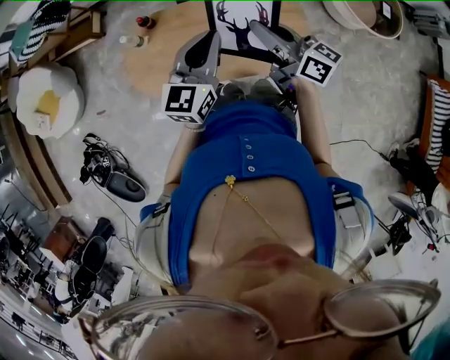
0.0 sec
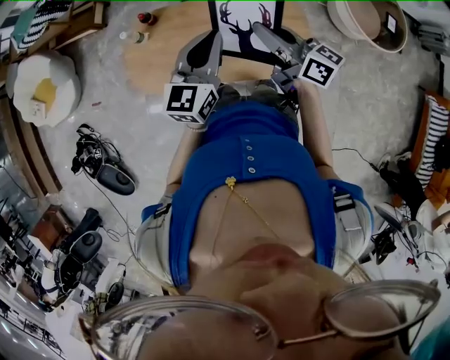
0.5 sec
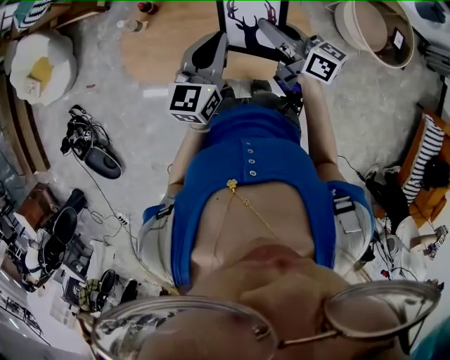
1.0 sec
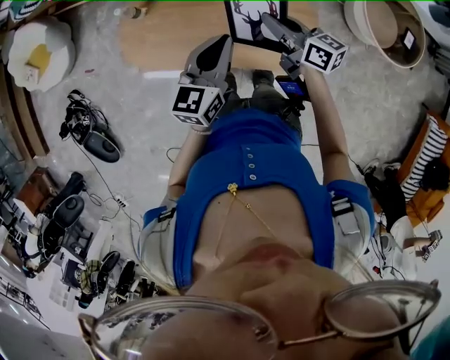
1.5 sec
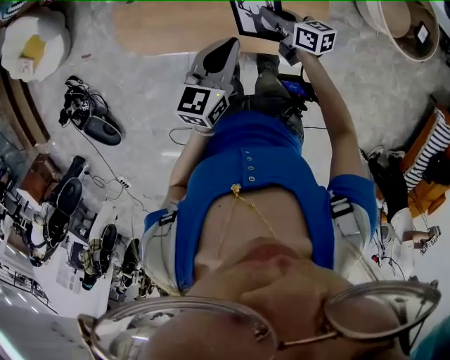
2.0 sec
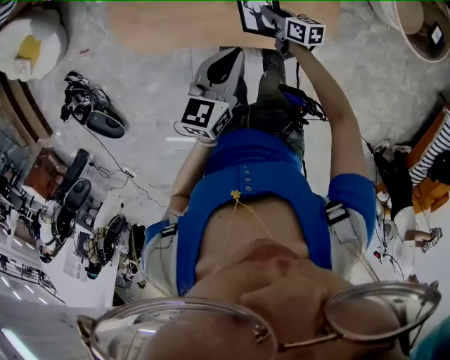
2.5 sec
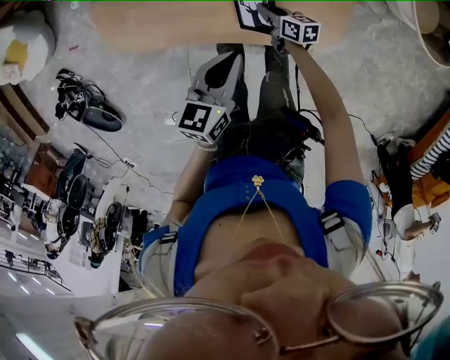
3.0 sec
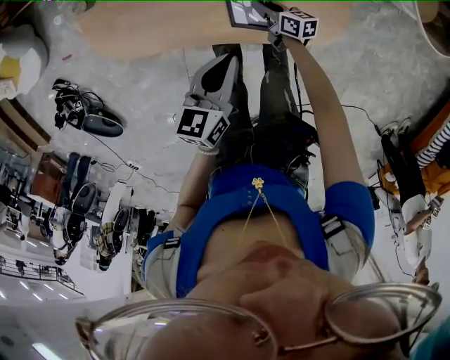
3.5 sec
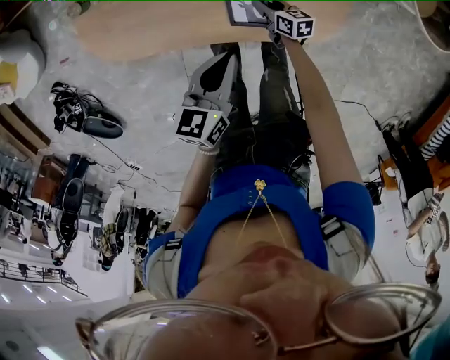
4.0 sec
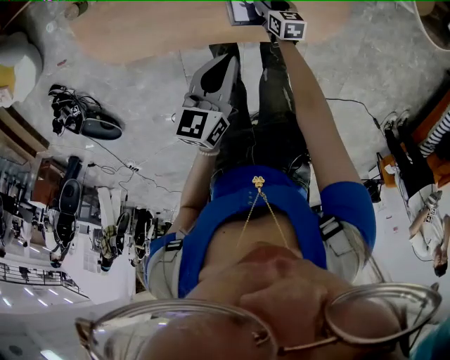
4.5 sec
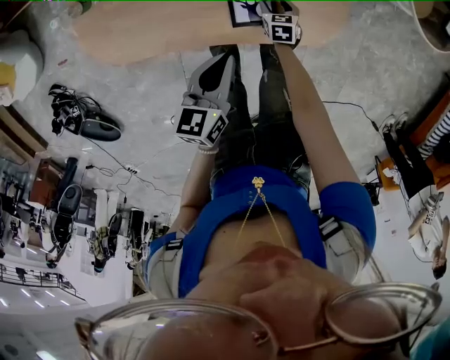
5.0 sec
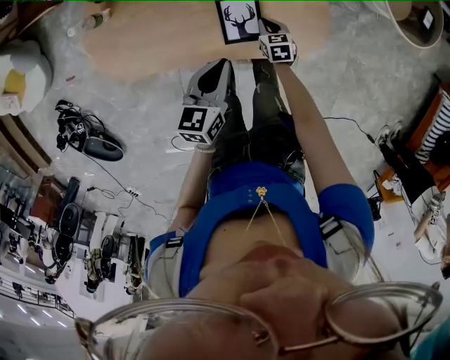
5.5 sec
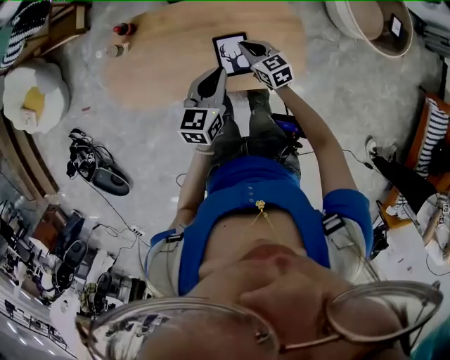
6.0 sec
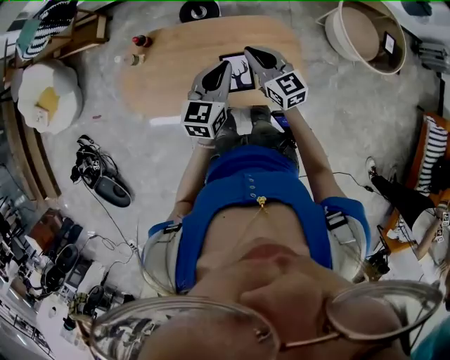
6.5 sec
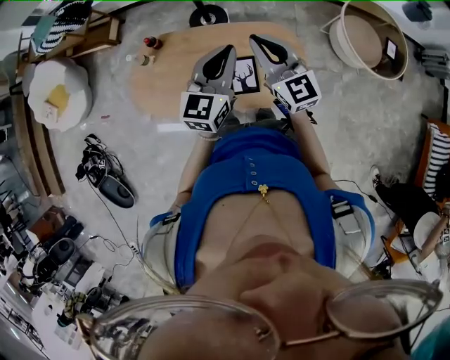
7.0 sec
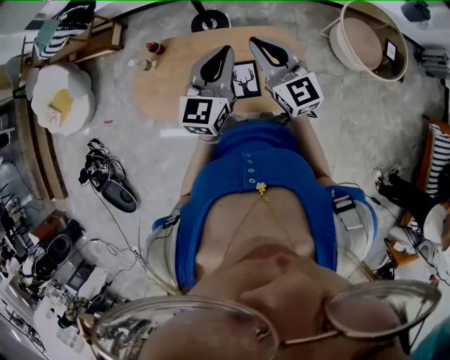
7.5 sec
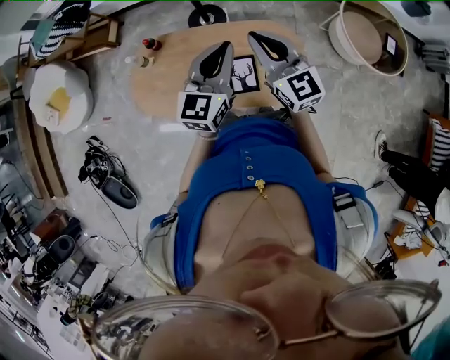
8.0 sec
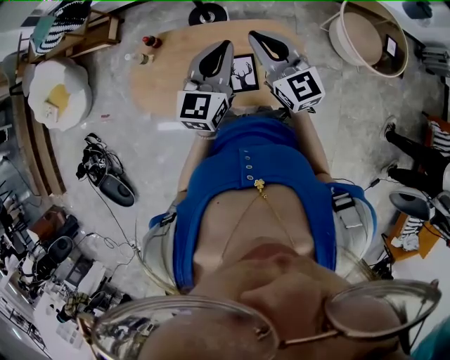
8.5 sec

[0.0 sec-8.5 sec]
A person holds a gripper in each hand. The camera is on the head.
0.0 sec to 2.0 sec: The left gripper shifts approximately 10 cm downward, and changes its angle by approximately 20 degrees. The right gripper moves downward, about 25 cm, and turns by roughly 30 degrees.
2.0 sec to 4.0 sec: The right gripper goes some 30 cm downward, while the left gripper goes roughly 20 cm downward.
4.0 sec to 6.5 sec: The right gripper travels upward by roughly 40 cm, swivels some 50 degrees, and opens, then closes once more; the left gripper goes about 20 cm upward, and changes its angle by approximately 30 degrees.
6.5 sec to 8.5 sec: Both grippers move upward, roughly 15 cm.

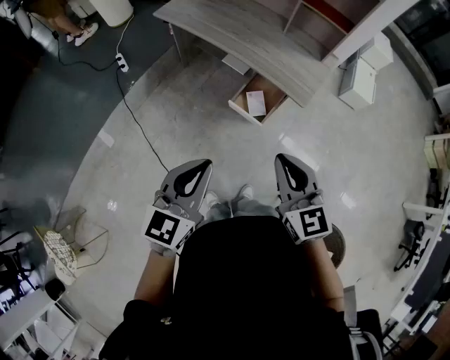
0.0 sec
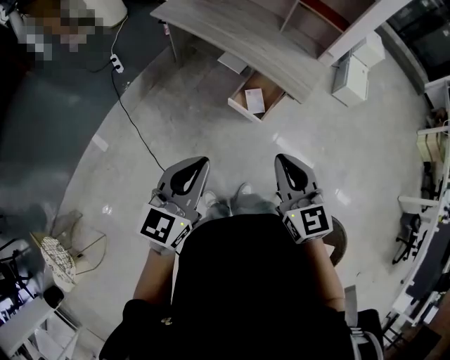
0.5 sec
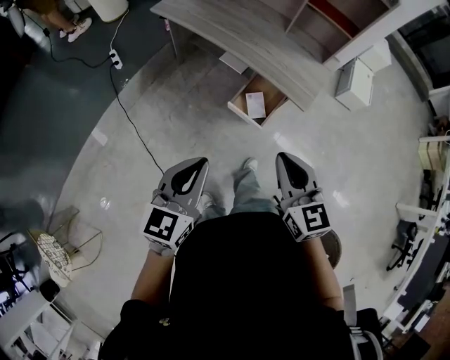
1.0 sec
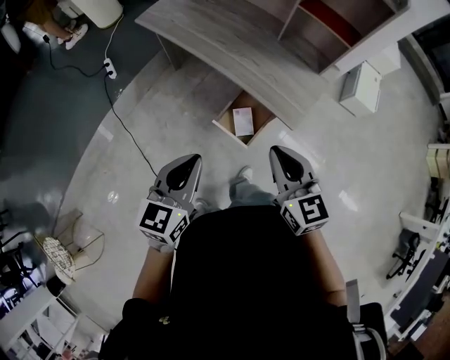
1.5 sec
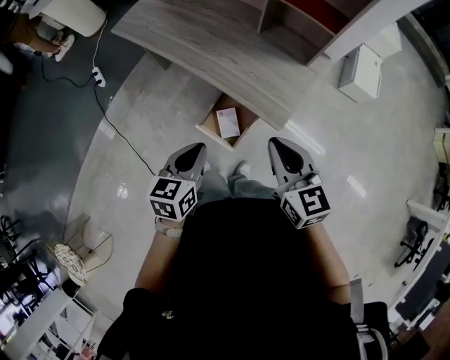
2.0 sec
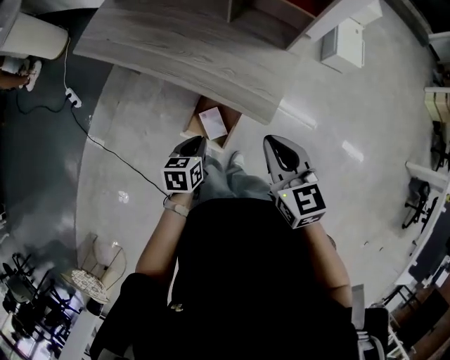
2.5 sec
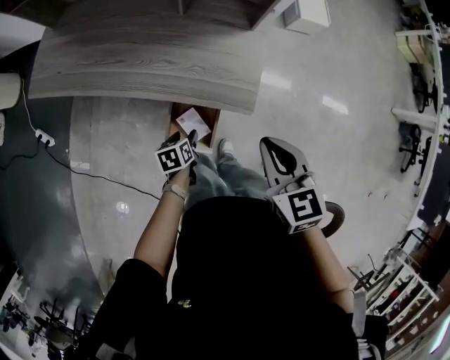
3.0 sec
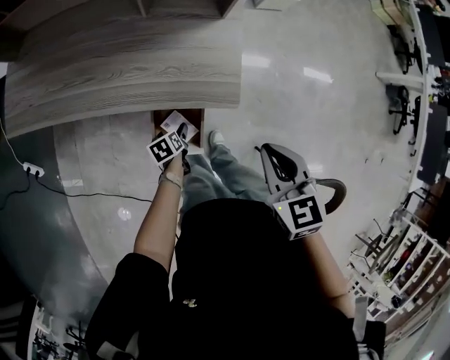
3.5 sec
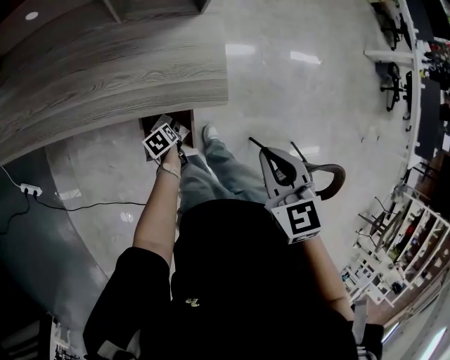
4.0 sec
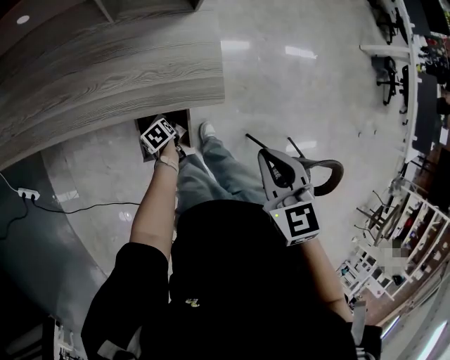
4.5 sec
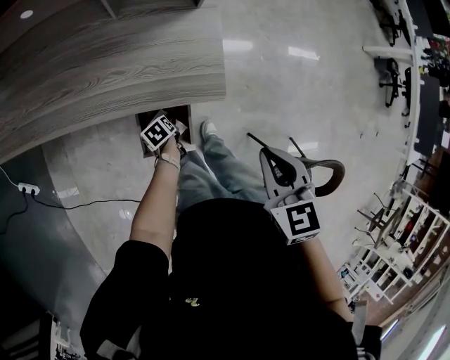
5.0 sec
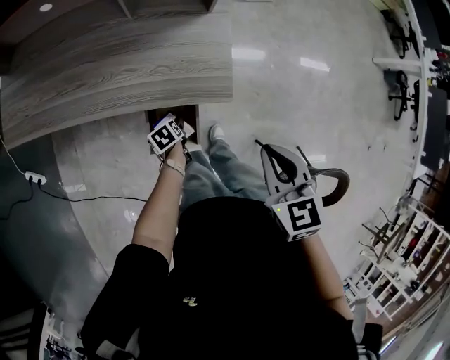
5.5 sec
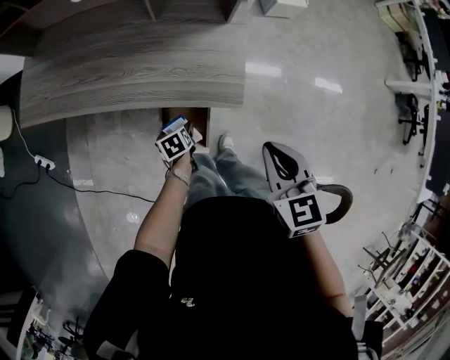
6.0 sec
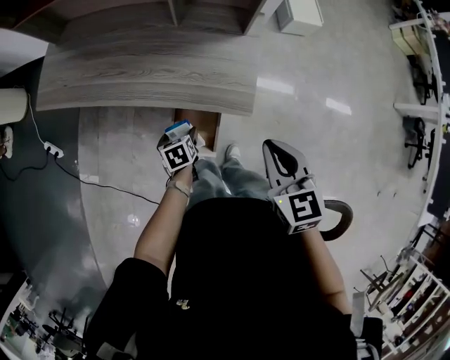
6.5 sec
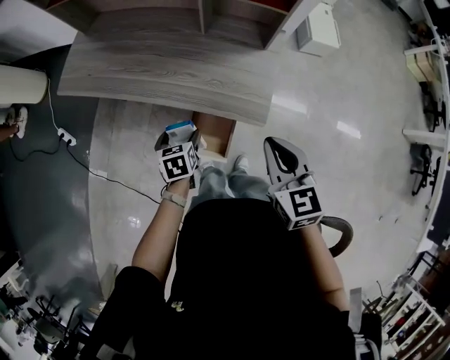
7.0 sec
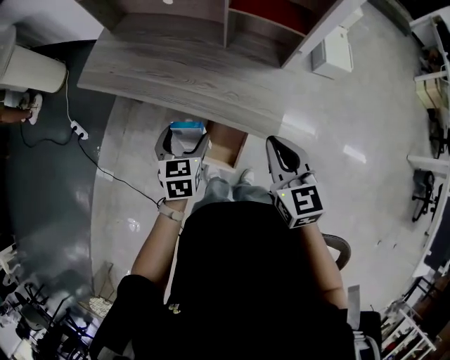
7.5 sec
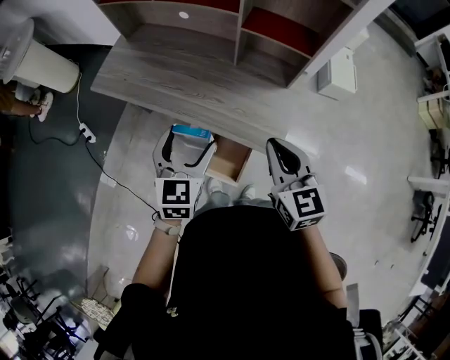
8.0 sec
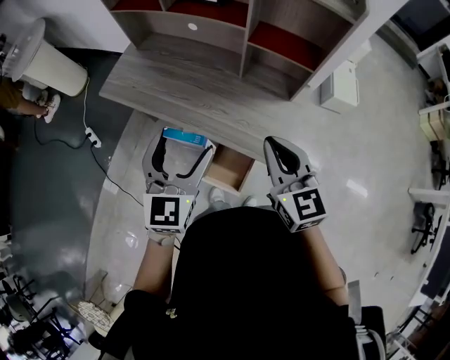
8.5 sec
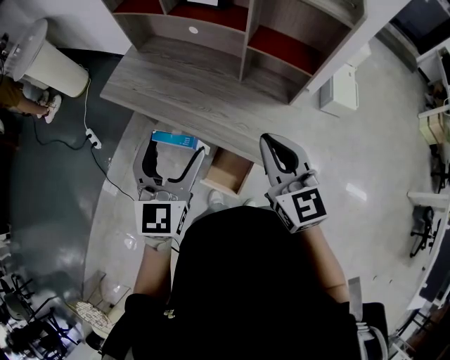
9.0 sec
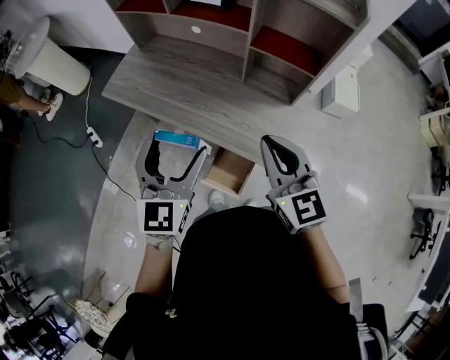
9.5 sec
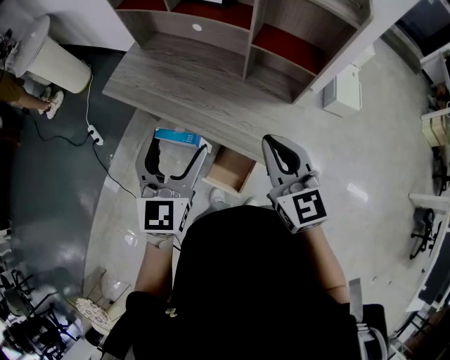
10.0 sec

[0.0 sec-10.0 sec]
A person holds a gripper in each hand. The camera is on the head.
0.0 sec to 2.0 sec: The right gripper shifts roughly 30 cm forward and to the right. The left gripper is displaced forward, downward and to the right by about 30 cm, and rotates some 30 degrees.
2.0 sec to 4.0 sec: The right gripper travels downward by roughly 5 cm, and rotates about 50 degrees; the left gripper heads downward, covering some 40 cm, angles its fingers downward, by some 30 degrees, and opens its fingers.
4.0 sec to 6.0 sec: The left gripper travels upward by about 10 cm.
6.0 sec to 8.0 sec: The right gripper shifts about 15 cm upward, forward and to the left, and swivels approximately 30 degrees. The left gripper moves upward, approximately 40 cm, and tips its fingers upward by some 40 degrees.
8.0 sec to 10.0 sec: The right gripper goes approximately 5 cm upward; the left gripper heads upward, covering roughly 10 cm.

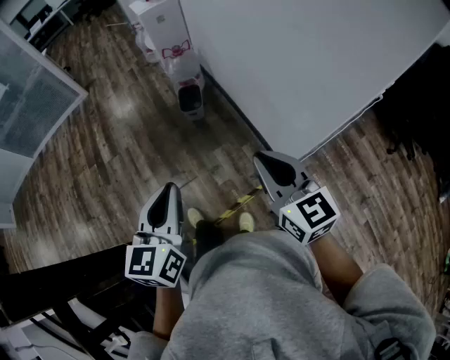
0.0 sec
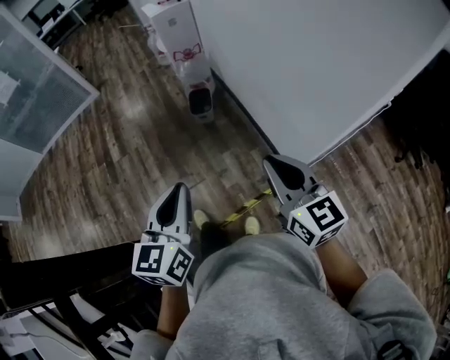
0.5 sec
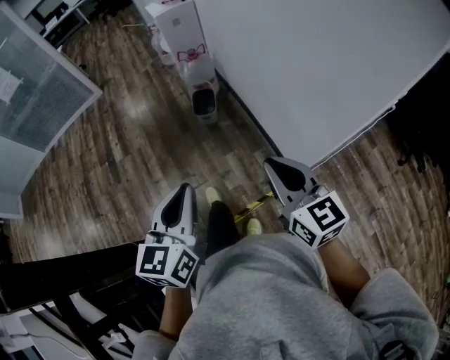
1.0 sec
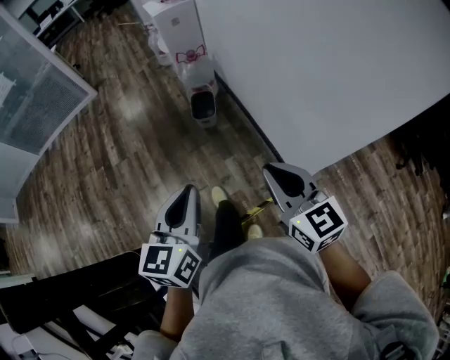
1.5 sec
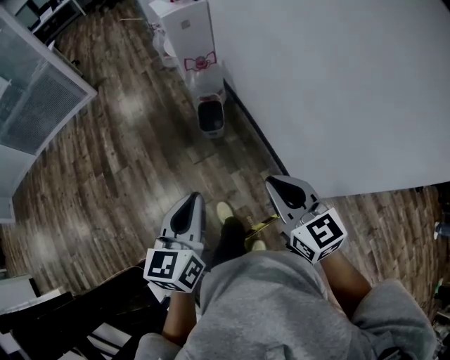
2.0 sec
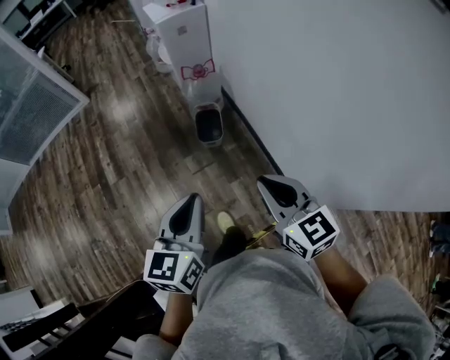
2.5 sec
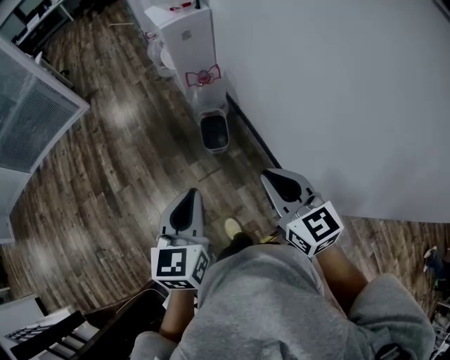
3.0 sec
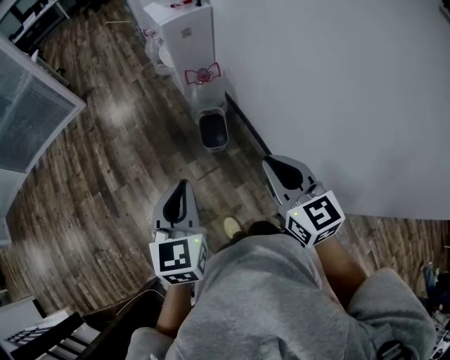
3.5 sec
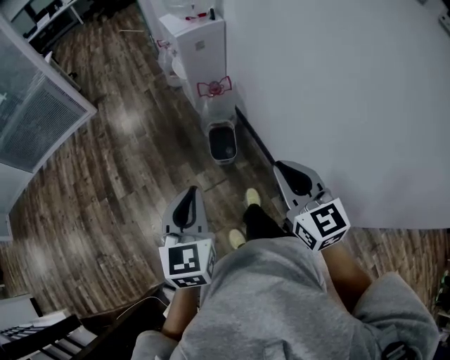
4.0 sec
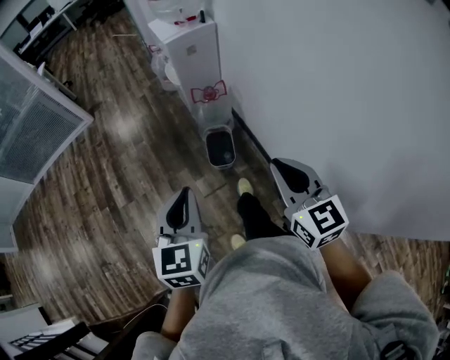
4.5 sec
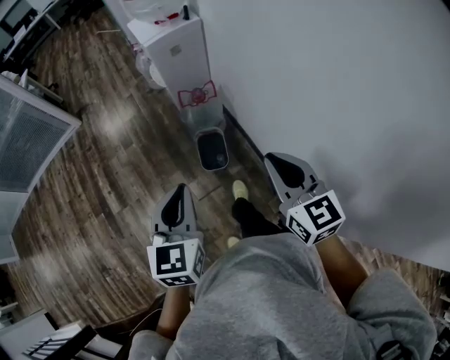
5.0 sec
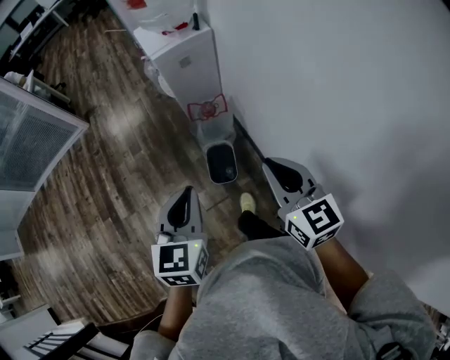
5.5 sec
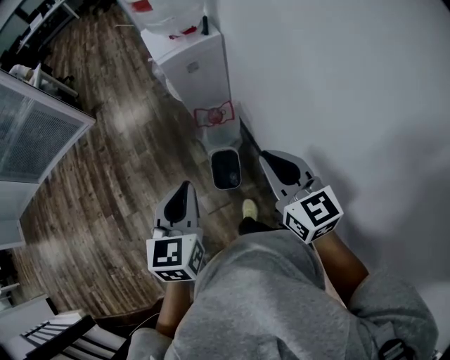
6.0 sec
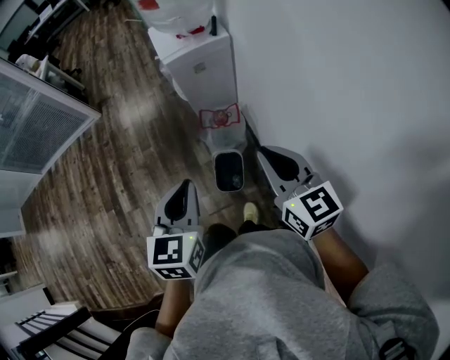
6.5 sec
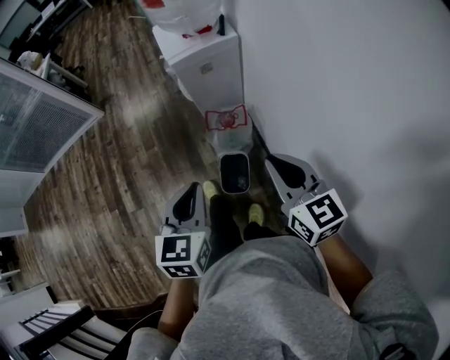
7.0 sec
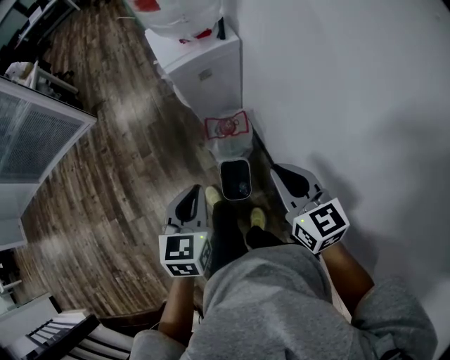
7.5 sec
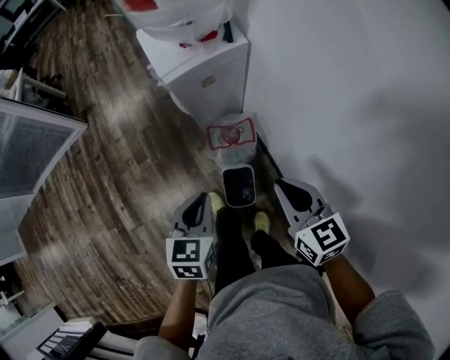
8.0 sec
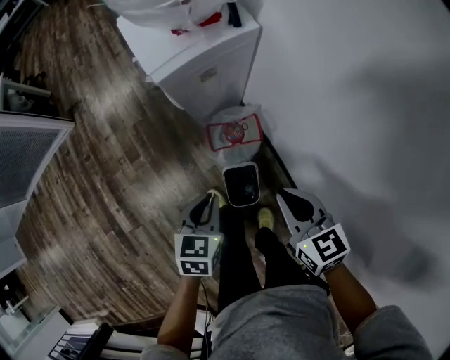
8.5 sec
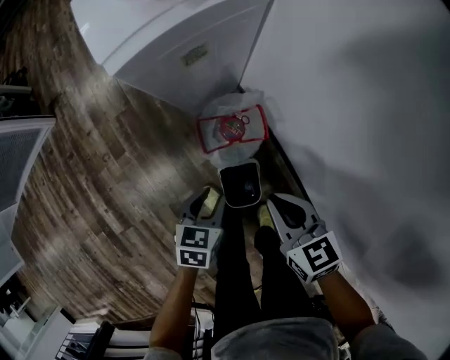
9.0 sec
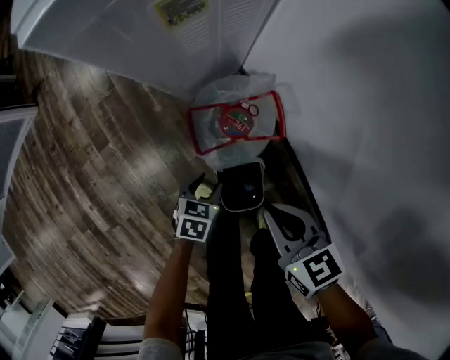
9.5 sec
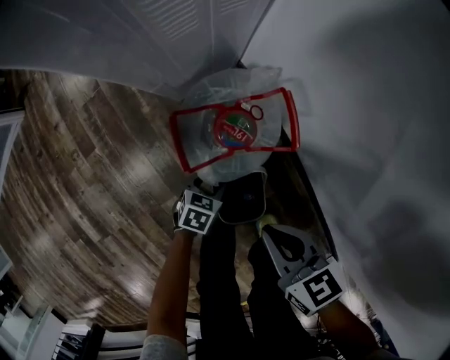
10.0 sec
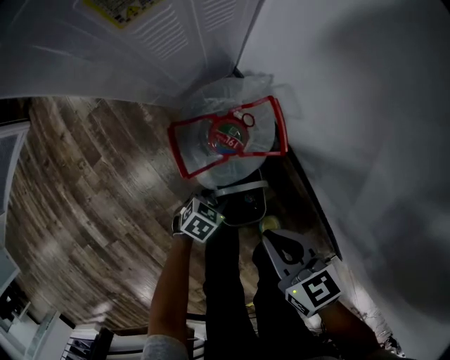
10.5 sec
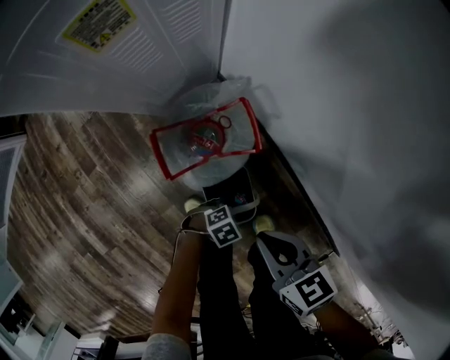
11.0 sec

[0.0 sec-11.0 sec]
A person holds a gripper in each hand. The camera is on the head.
0.0 sec to 2.0 sec: The grippers both shift forward by roughly 20 cm.
2.0 sec to 3.5 sec: The right gripper travels forward by some 20 cm. The left gripper moves forward and to the left, approximately 20 cm.
3.5 sec to 5.5 sec: Both grippers travel together forward, approximately 25 cm.
5.5 sec to 7.5 sec: The right gripper shifts some 15 cm forward; the left gripper is displaced forward and downward by approximately 20 cm.
7.5 sec to 9.0 sec: The two grippers go approximately 30 cm downward. The left gripper turns by approximately 30 degrees, and opens.
9.0 sec to 11.0 sec: The right gripper is displaced downward by about 15 cm. The left gripper shifts roughly 30 cm downward, and swivels some 60 degrees.
